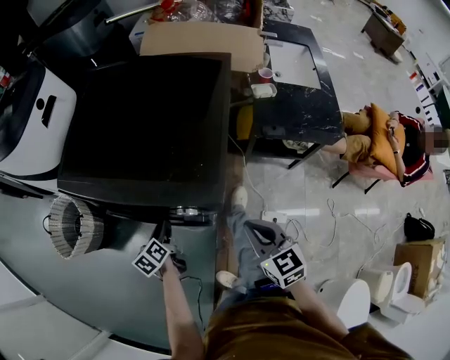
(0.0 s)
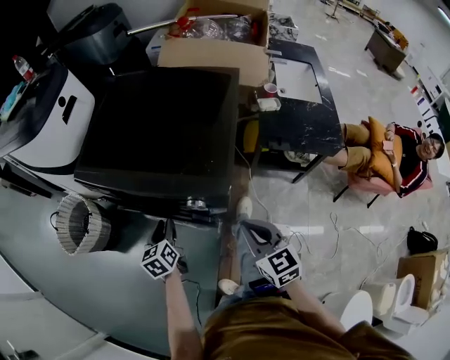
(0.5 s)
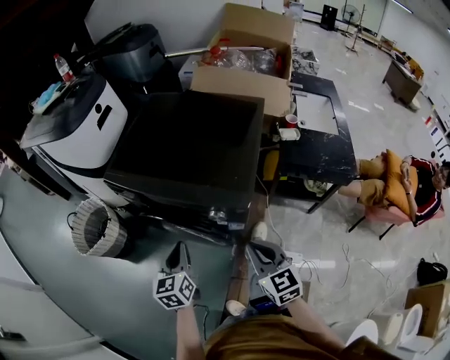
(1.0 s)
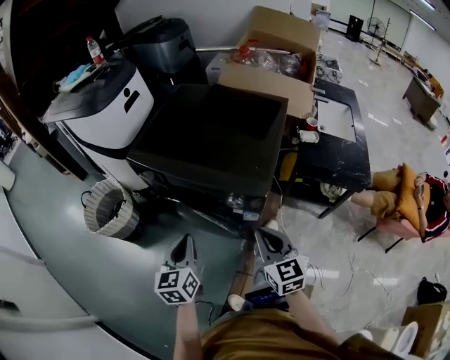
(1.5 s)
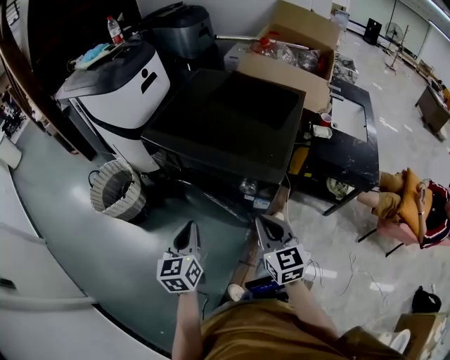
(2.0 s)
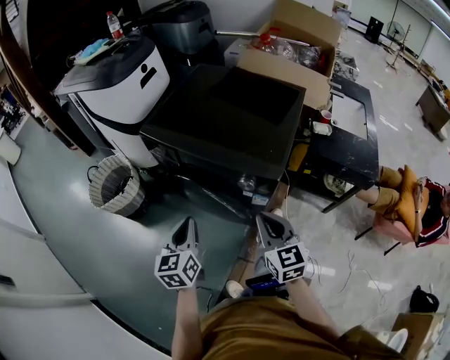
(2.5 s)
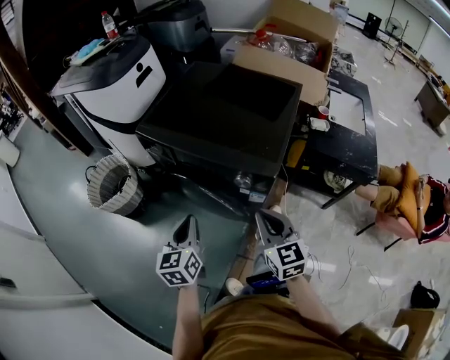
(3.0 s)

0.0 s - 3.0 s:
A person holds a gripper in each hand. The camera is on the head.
0.0 s - 1.5 s: The right gripper travels to the left and upward by approximately 10 cm. Meanwhile the left gripper heads upward and backward, covering some 25 cm, rotates approximately 40 degrees, and closes.
1.5 s - 3.0 s: The grippers move only a little.

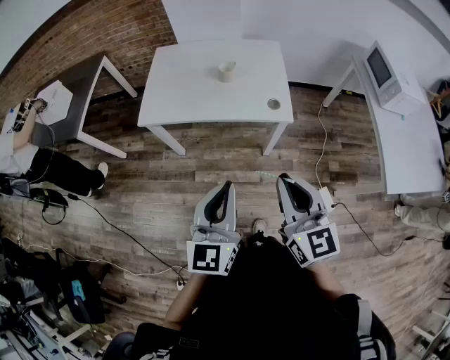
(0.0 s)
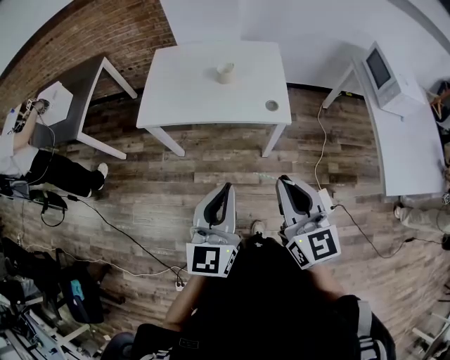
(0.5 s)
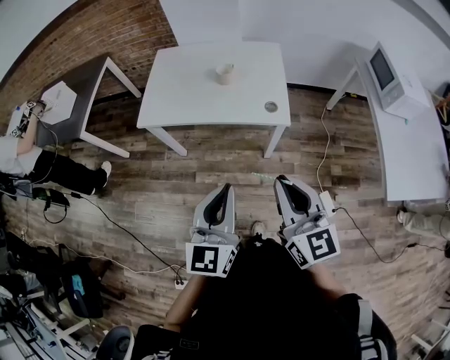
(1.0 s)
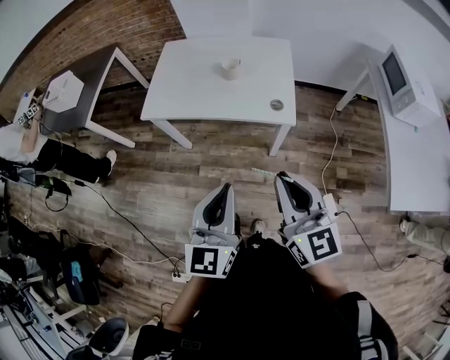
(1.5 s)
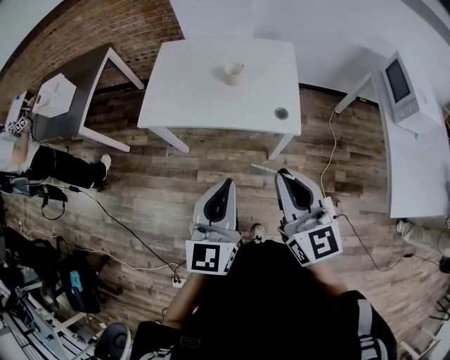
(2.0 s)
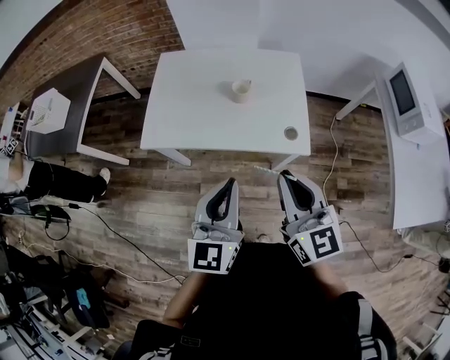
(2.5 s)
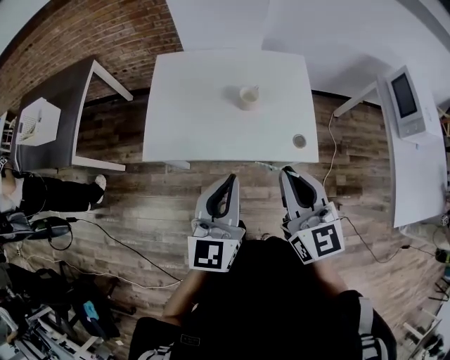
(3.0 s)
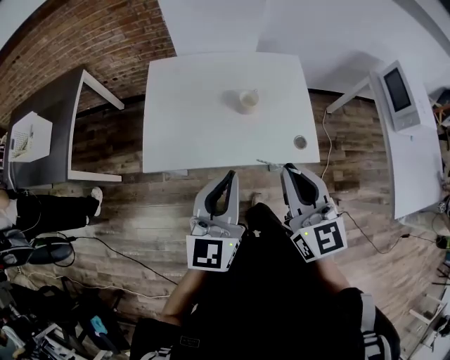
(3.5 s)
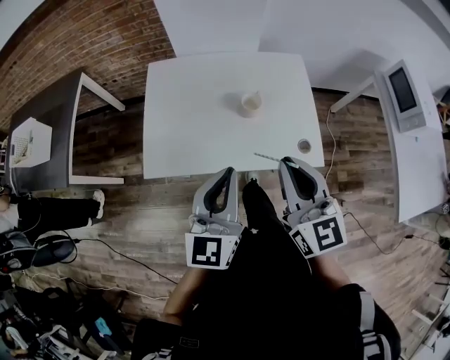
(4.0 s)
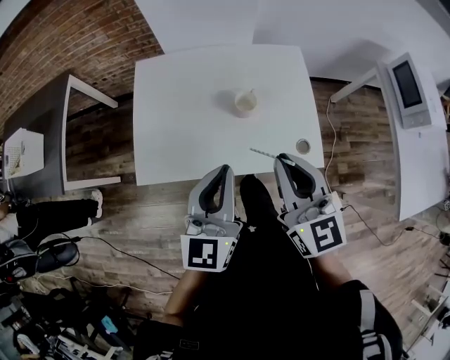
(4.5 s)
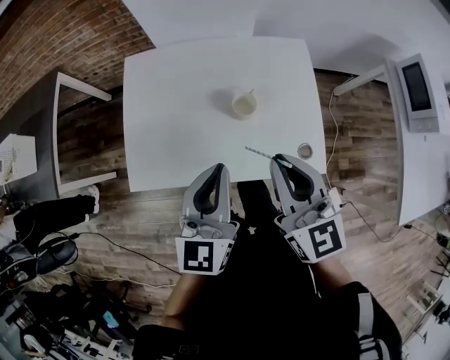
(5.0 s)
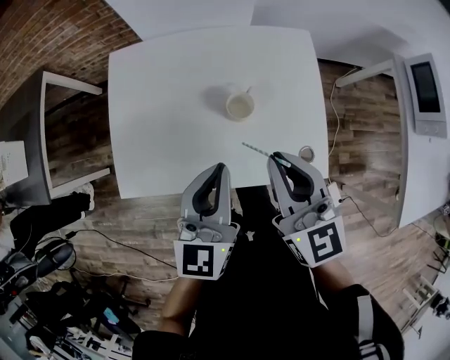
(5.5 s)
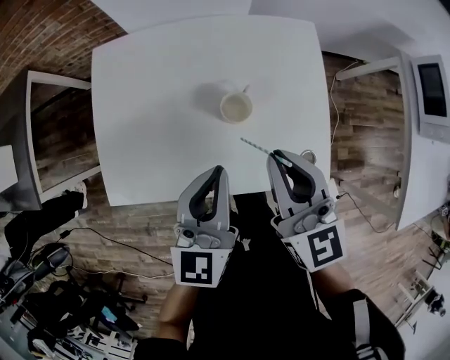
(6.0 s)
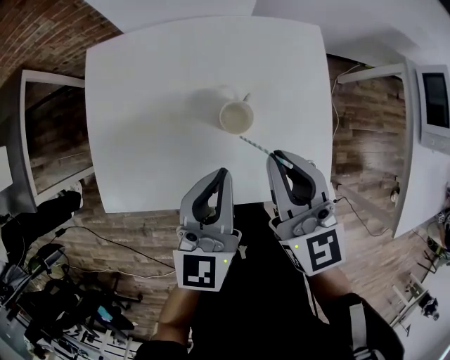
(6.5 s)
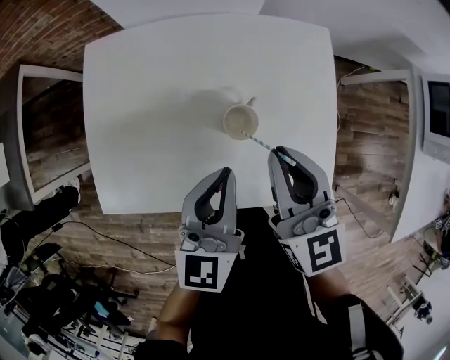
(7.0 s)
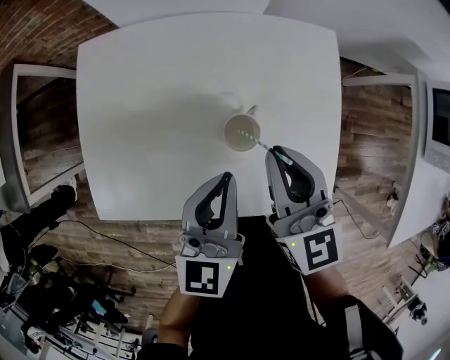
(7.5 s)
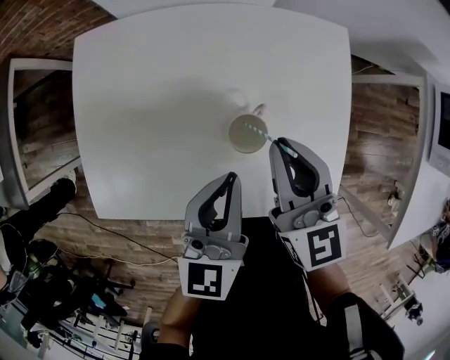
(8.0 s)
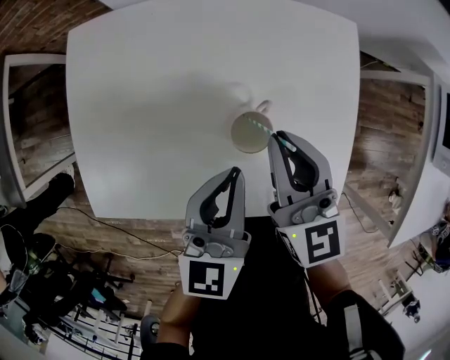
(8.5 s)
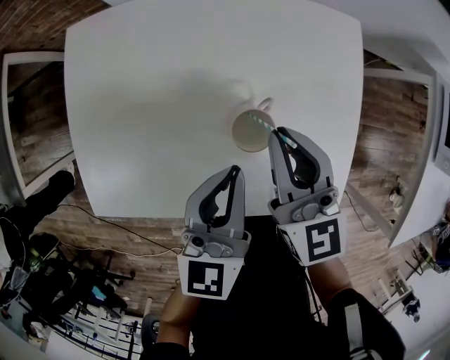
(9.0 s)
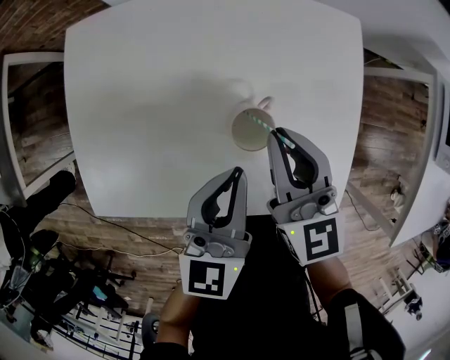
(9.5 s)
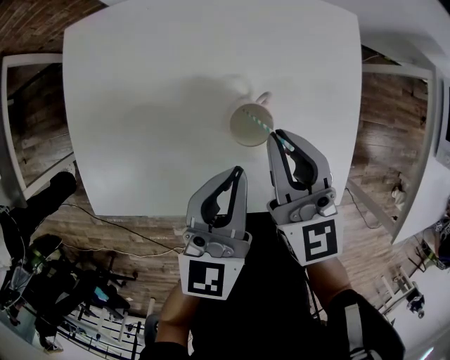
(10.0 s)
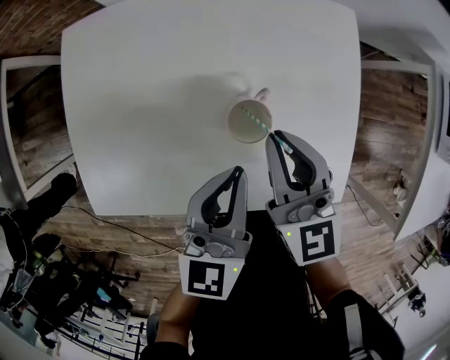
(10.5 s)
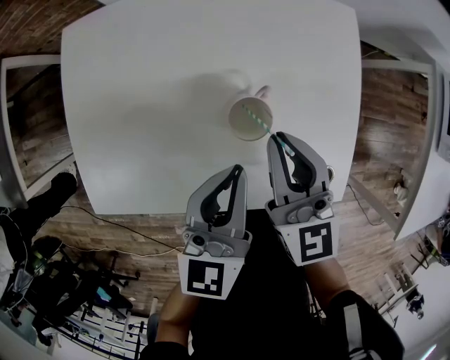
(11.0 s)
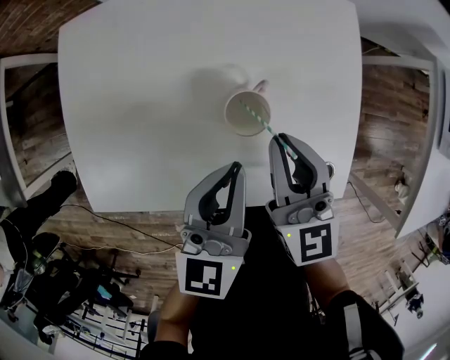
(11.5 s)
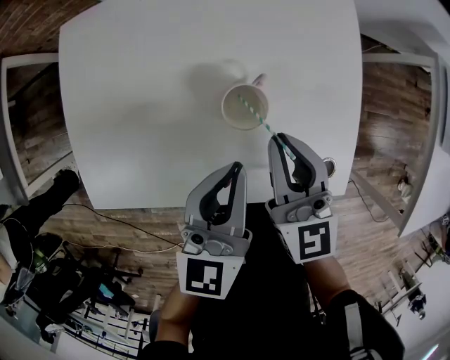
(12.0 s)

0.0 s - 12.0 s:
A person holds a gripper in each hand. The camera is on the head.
0.0 s - 2.0 s: The grippers both shift forward by approximately 10 cm.
2.0 s - 4.0 s: Both grippers move forward and to the left, some 25 cm.
4.0 s - 6.0 s: Both grippers travel together forward and downward, about 20 cm.
6.0 s - 8.0 s: Both grippers travel together forward and downward, about 10 cm.
8.0 s - 10.0 s: There are only small adjustments of the grippers.
10.0 s - 12.0 s: There are only small adjustments of the grippers.

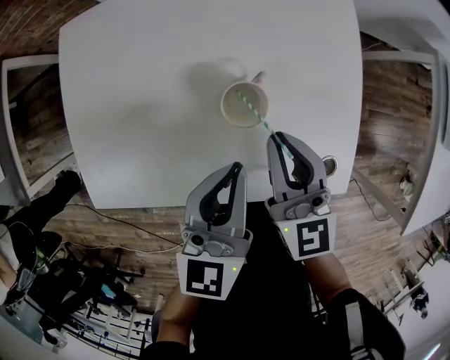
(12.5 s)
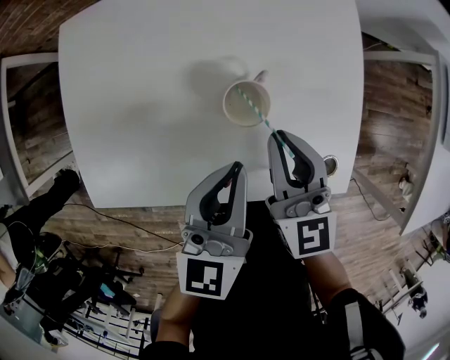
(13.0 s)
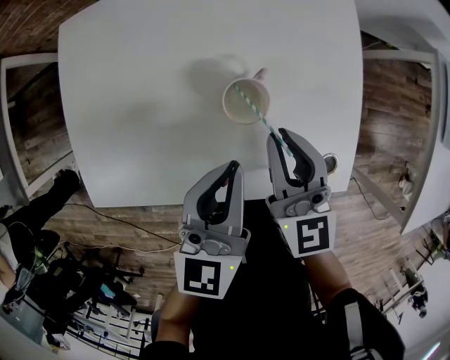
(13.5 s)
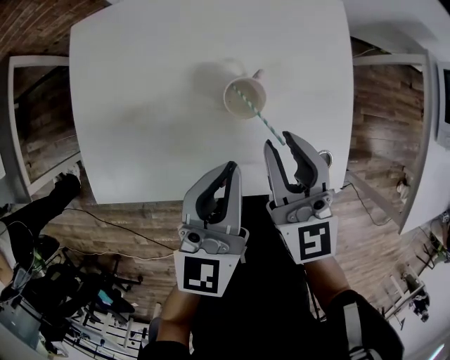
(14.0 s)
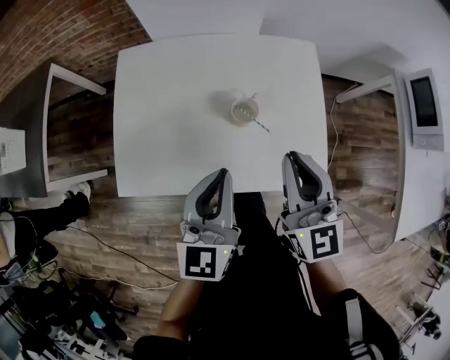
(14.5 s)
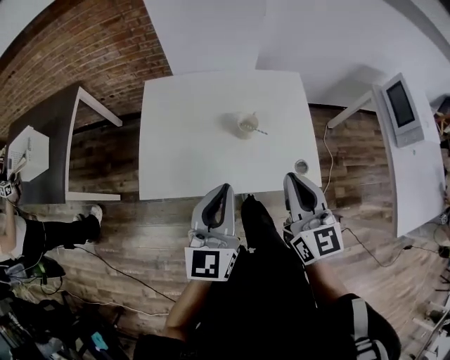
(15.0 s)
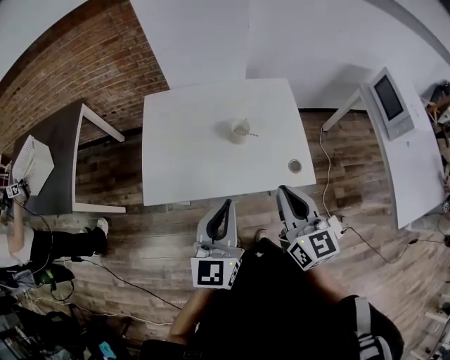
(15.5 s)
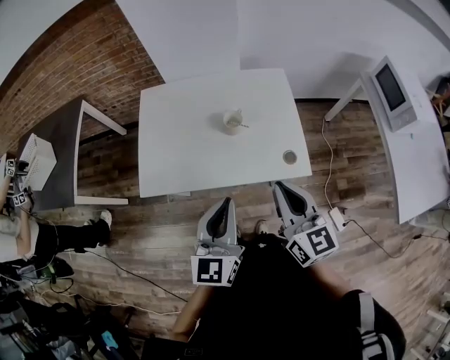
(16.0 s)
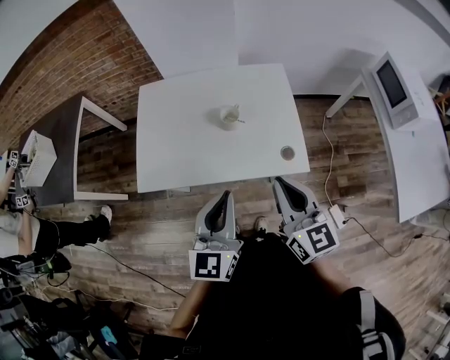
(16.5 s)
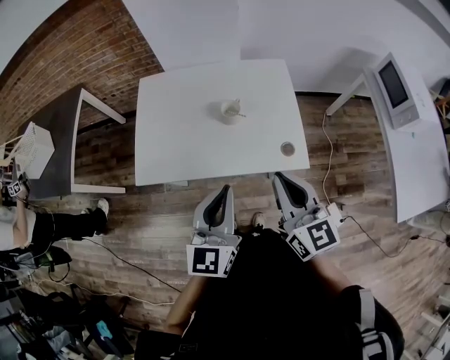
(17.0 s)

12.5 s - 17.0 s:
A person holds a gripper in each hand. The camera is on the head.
12.5 s - 14.5 s: Both grippers travel together upward and backward, approximately 15 cm.
14.5 s - 17.0 s: The right gripper heads backward, covering some 15 cm. Meanwhile the left gripper goes about 20 cm backward and upward.

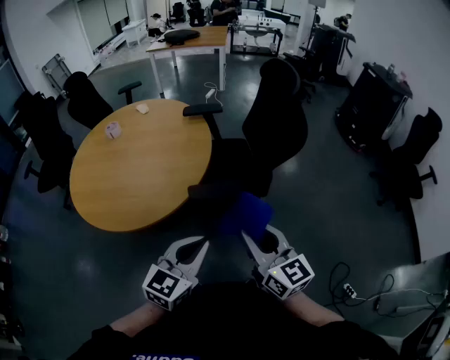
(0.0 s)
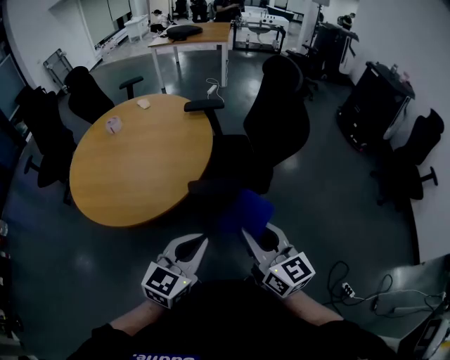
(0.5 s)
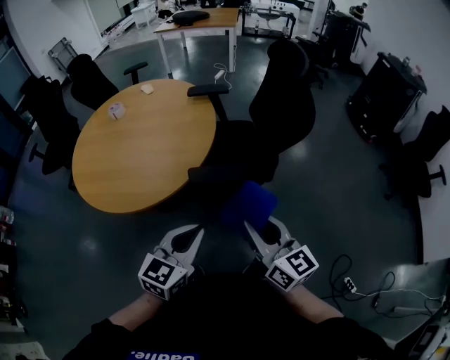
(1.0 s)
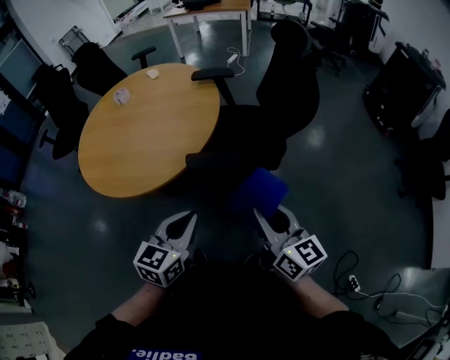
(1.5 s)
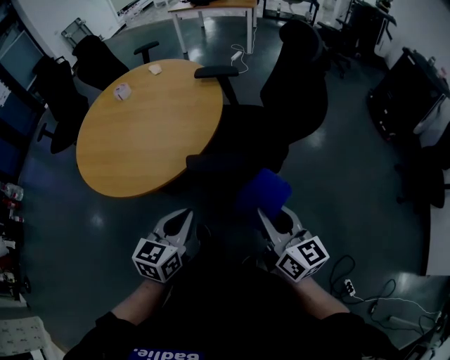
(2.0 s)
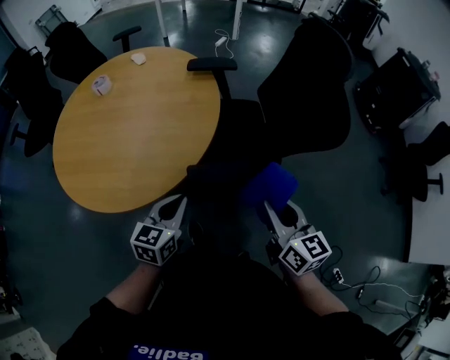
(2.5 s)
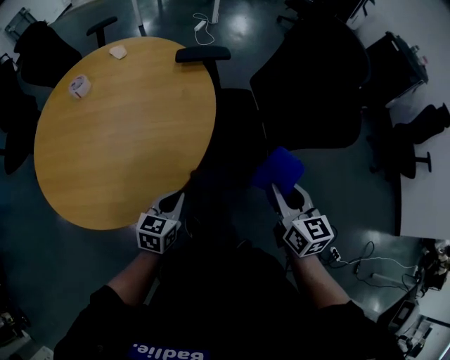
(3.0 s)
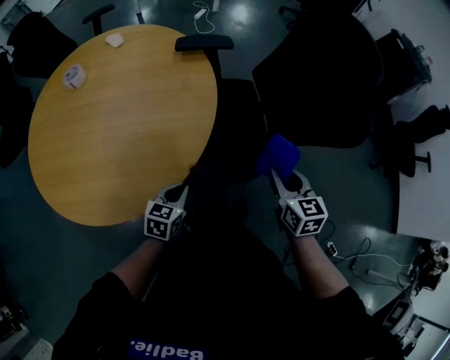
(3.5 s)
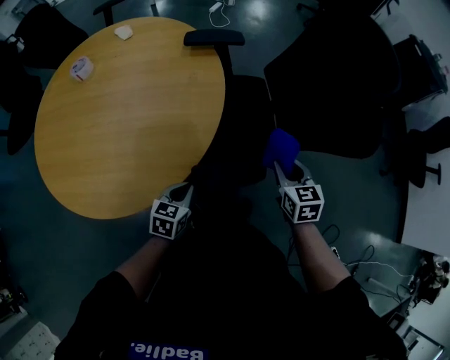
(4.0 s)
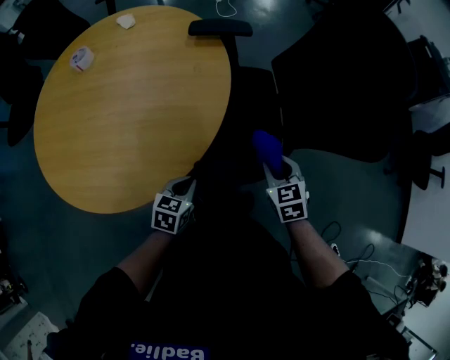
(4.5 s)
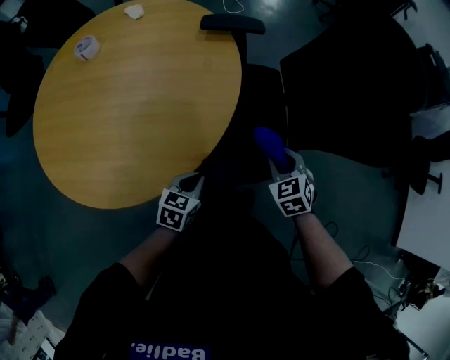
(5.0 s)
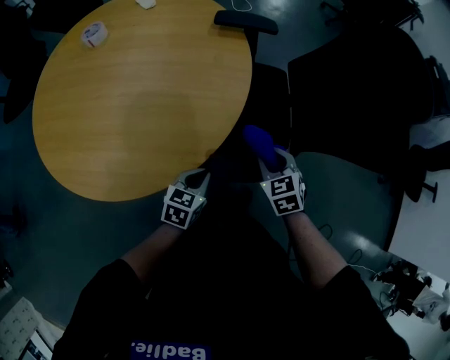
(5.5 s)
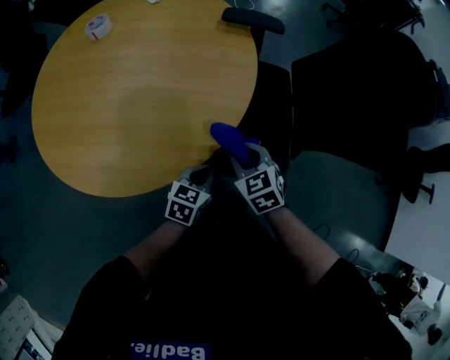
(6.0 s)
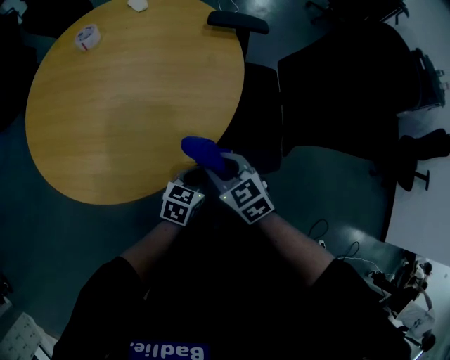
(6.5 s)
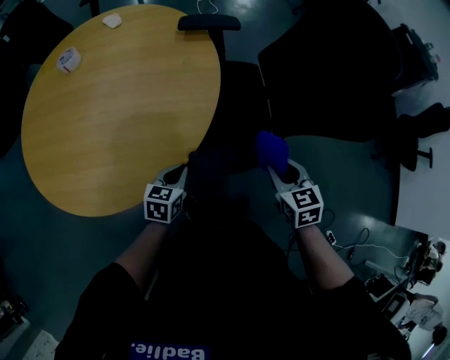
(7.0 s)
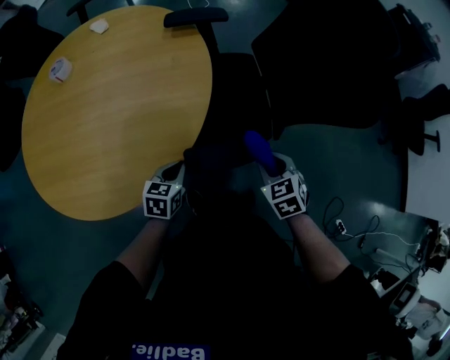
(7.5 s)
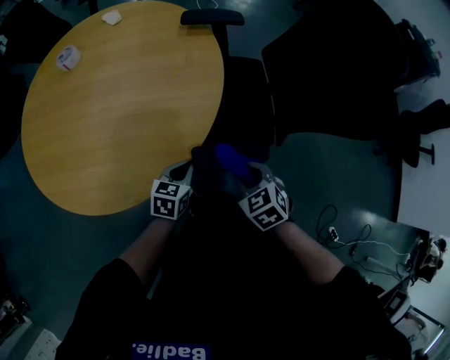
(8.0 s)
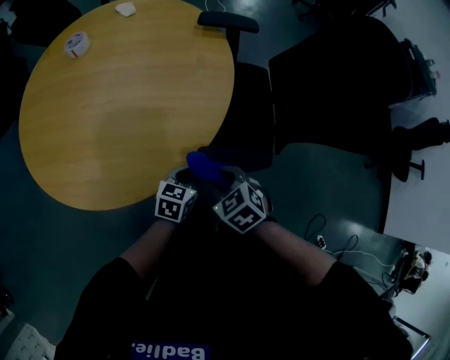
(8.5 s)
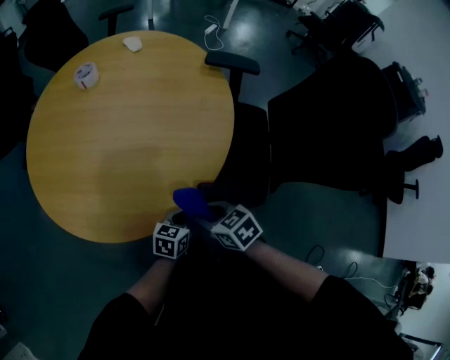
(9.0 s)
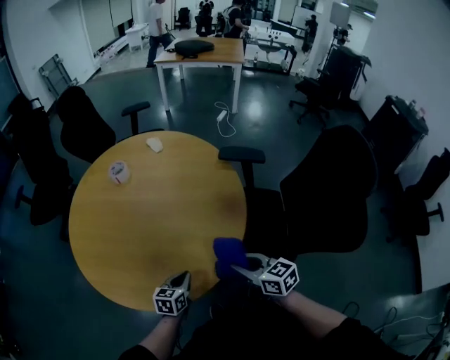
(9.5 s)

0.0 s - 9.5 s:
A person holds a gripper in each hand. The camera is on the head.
0.0 s - 2.0 s: The left gripper goes about 10 cm downward and forward, and turns by approximately 20 degrees, while the right gripper is displaced to the right and downward by about 10 cm.
2.0 s - 4.0 s: The left gripper travels downward, forward and to the left by some 30 cm, and changes its angle by roughly 20 degrees; the right gripper is displaced forward and downward by approximately 30 cm, and angles its fingers downward, by about 40 degrees.
4.0 s - 5.5 s: The right gripper moves to the left and downward, about 15 cm, and turns by some 30 degrees.
5.5 s - 7.5 s: The right gripper heads backward, covering about 5 cm, and moves roughly 15 cm to the left and comes back.
7.5 s - 9.5 s: The left gripper changes place by about 15 cm. The right gripper shifts by approximately 25 cm, and rotates some 50 degrees.
